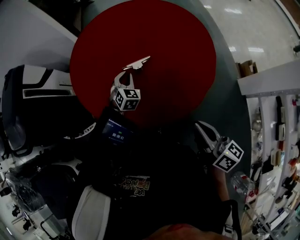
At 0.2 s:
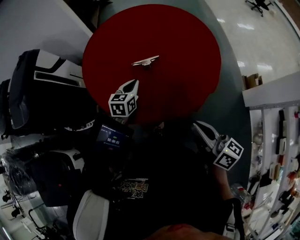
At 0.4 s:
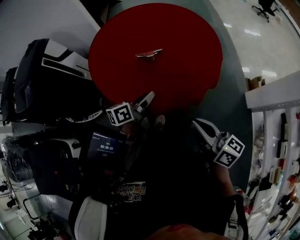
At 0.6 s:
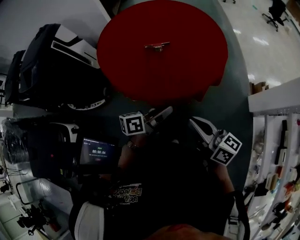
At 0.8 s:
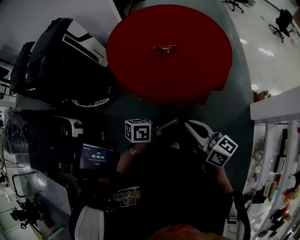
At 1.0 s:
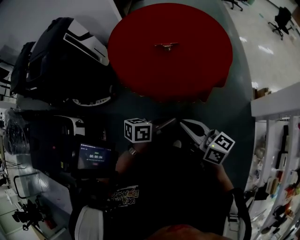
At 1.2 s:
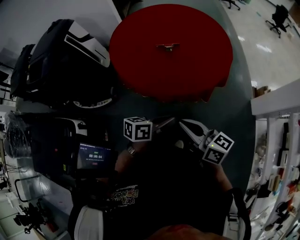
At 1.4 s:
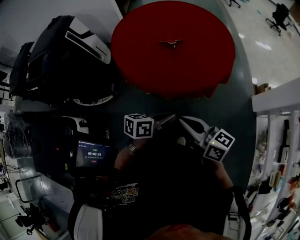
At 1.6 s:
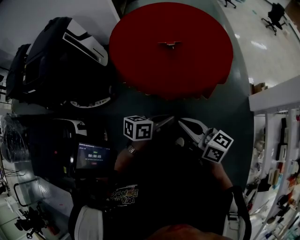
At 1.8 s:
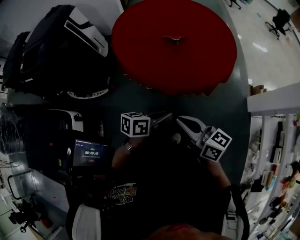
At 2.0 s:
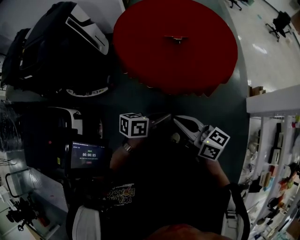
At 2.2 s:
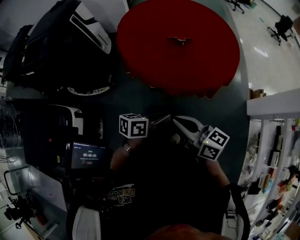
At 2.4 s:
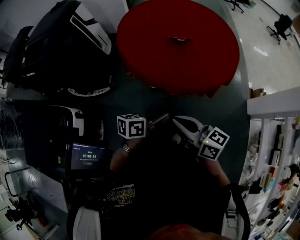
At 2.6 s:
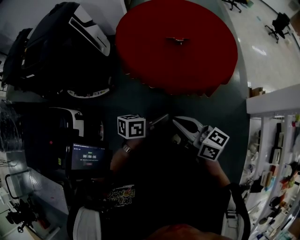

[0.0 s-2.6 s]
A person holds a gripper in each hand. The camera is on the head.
0.0 to 1.2 s: The right gripper heads backward and to the left, covering roughly 25 cm, and changes its angle by some 30 degrees. Meanwhile the left gripper travels backward by about 50 cm, and turns by roughly 80 degrees.
1.2 to 2.6 s: The grippers both shift to the left by about 10 cm.

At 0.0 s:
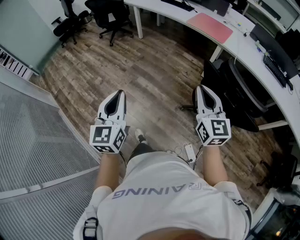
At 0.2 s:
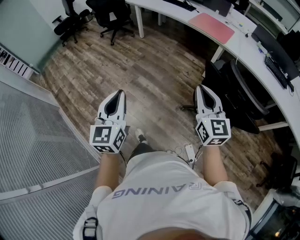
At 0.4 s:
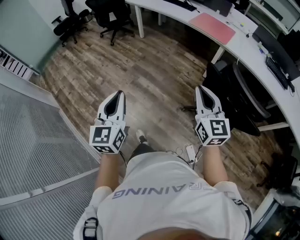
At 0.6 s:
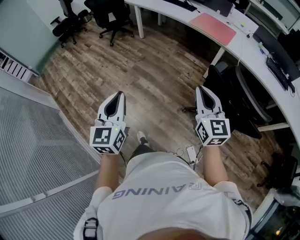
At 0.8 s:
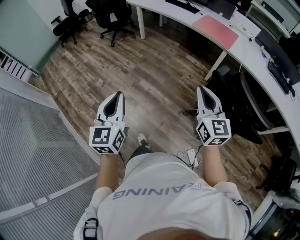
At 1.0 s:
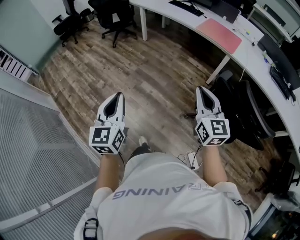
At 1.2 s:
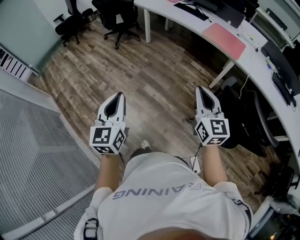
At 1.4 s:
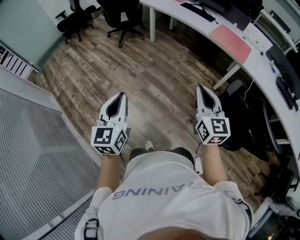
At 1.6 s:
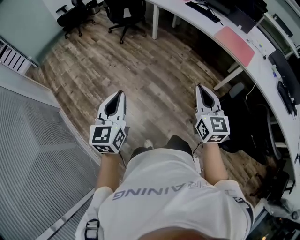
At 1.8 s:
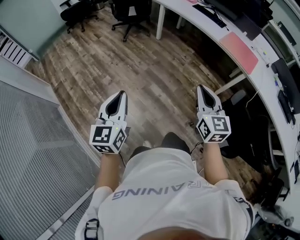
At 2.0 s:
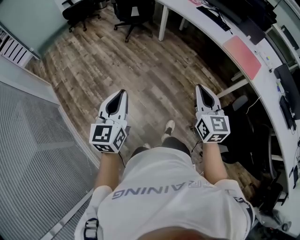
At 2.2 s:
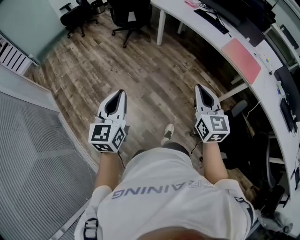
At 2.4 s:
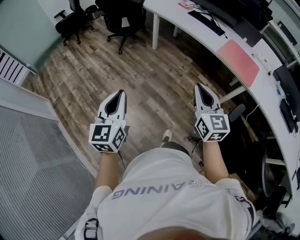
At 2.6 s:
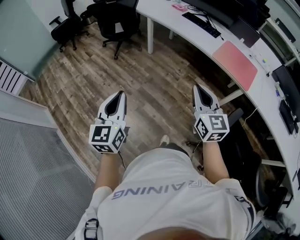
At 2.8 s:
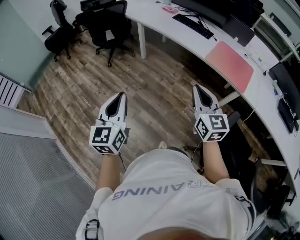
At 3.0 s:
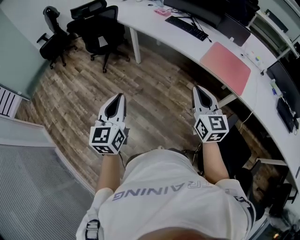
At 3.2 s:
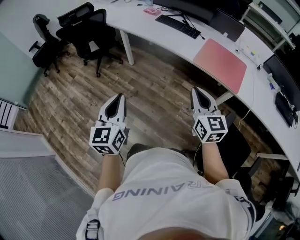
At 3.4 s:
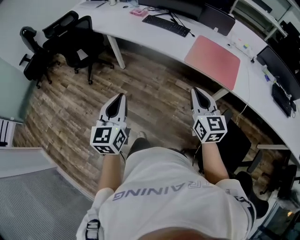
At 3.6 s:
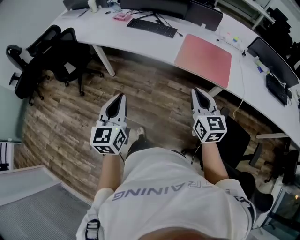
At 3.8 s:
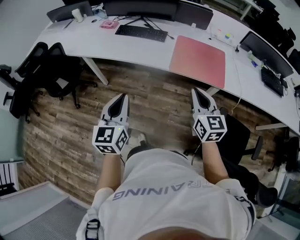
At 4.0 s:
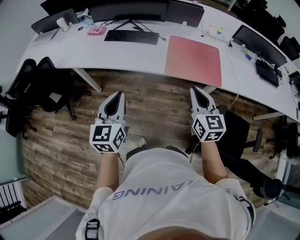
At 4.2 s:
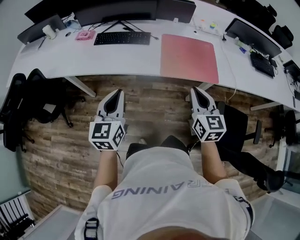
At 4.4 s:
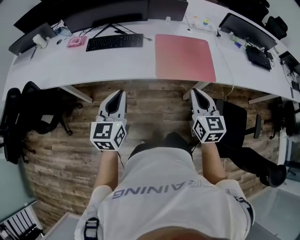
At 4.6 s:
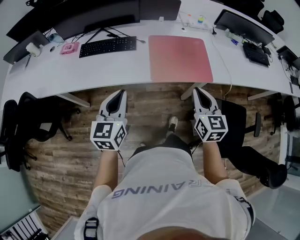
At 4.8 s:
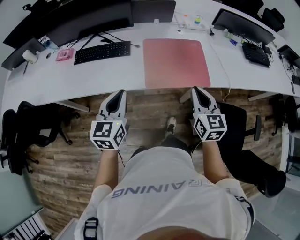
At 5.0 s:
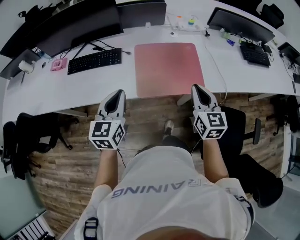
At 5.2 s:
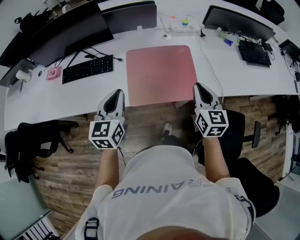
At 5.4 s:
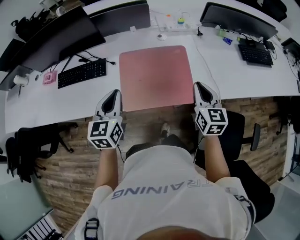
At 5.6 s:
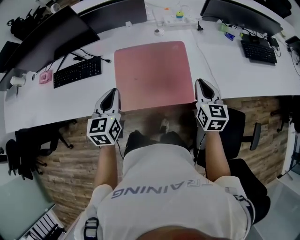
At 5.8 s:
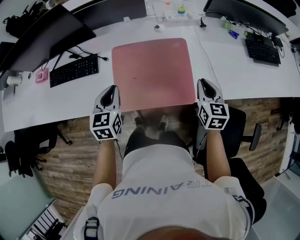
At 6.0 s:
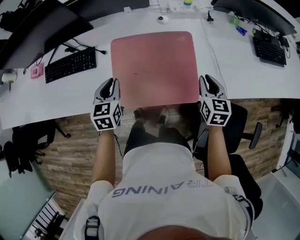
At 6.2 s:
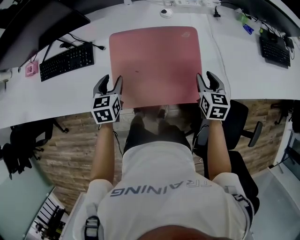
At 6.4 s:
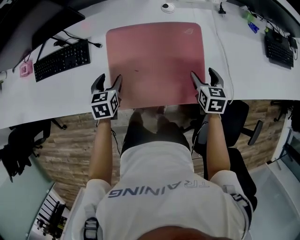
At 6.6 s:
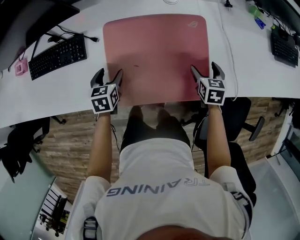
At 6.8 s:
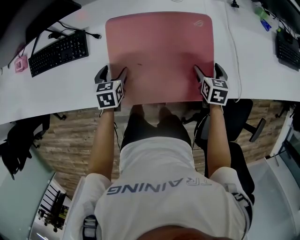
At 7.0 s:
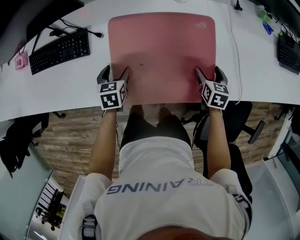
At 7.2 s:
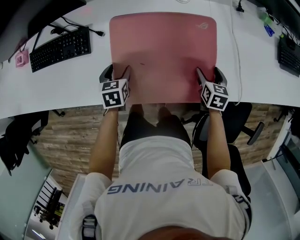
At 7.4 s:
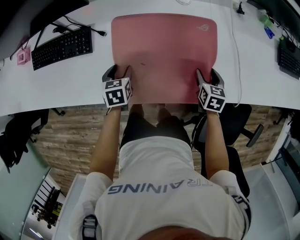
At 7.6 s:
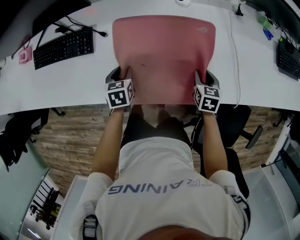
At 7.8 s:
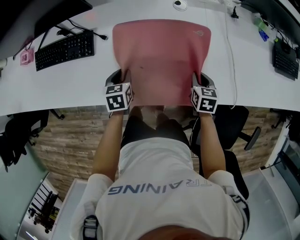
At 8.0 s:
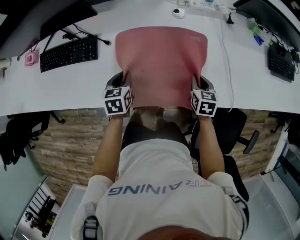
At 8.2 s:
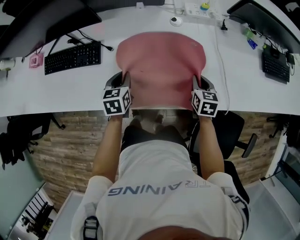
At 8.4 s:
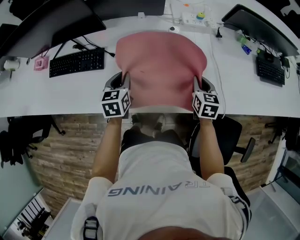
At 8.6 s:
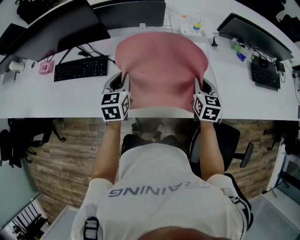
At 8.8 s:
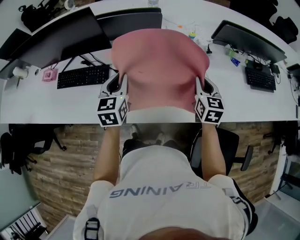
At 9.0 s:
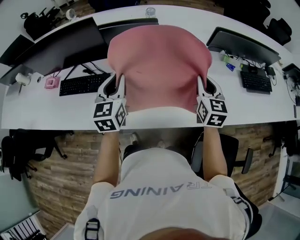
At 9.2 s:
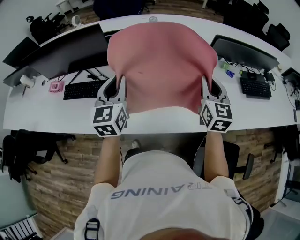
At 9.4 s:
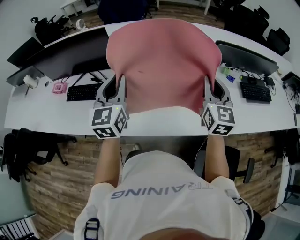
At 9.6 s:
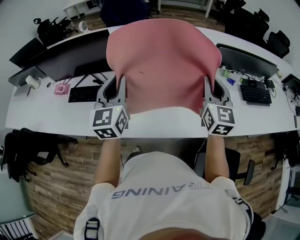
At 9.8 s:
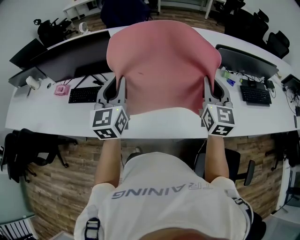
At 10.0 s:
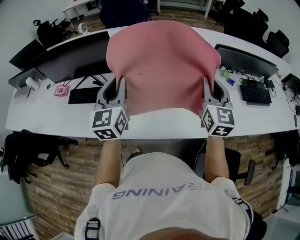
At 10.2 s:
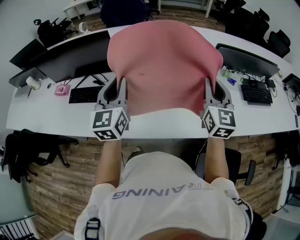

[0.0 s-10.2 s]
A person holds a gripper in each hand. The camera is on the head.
0.0 to 1.4 s: The left gripper is displaced to the left and forward by roughly 25 cm; the right gripper travels forward and to the left by some 25 cm.
1.4 to 3.0 s: The grippers both shift forward by about 40 cm.
3.0 to 4.4 s: The right gripper changes place by approximately 25 cm, and rotates roughly 40 degrees. Meanwhile the left gripper moves about 50 cm, and rotates some 40 degrees.
4.4 to 5.8 s: The right gripper moves forward, to the right and downward, approximately 40 cm; the left gripper heads forward and to the right, covering approximately 40 cm.
5.8 to 7.2 s: Both grippers travel together downward, some 25 cm. The left gripper changes its angle by approximately 30 degrees, and opens. The right gripper turns by approximately 20 degrees, and opens its fingers.
7.2 to 8.8 s: The two grippers go roughly 30 cm upward. The right gripper changes its angle by approximately 30 degrees, and closes up. Meanwhile the left gripper tips its fingers upward by about 40 degrees, and closes up.
8.8 to 10.2 s: Both grippers move upward, approximately 15 cm. The left gripper swivels approximately 20 degrees. Meanwhile the right gripper changes its angle by about 20 degrees.

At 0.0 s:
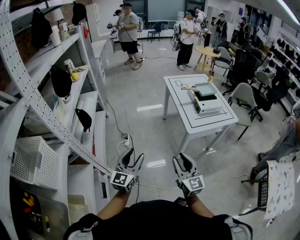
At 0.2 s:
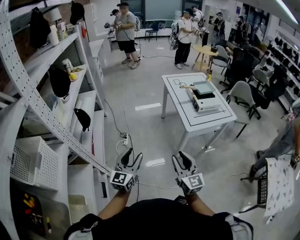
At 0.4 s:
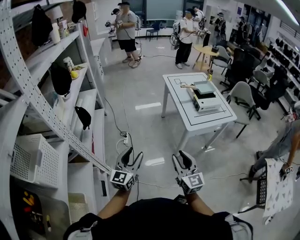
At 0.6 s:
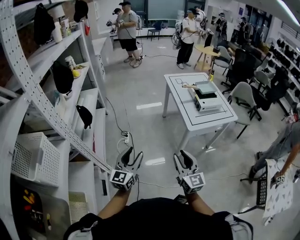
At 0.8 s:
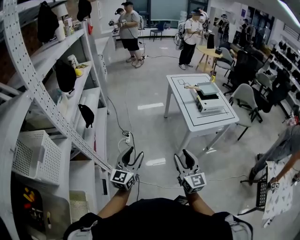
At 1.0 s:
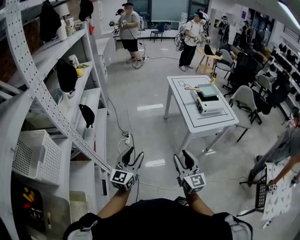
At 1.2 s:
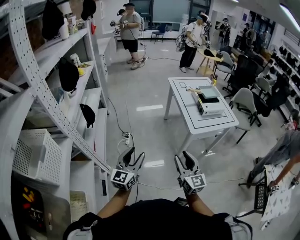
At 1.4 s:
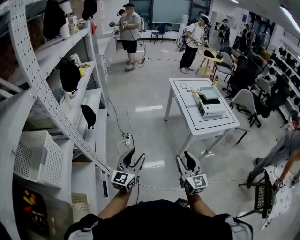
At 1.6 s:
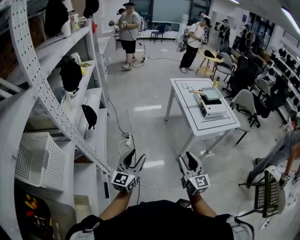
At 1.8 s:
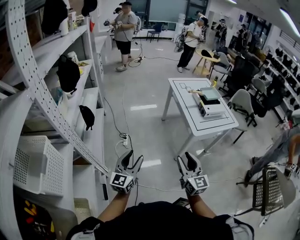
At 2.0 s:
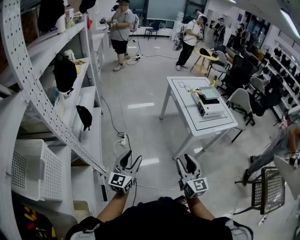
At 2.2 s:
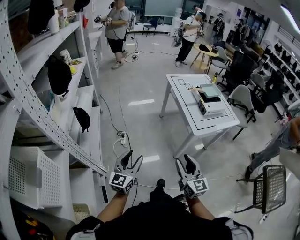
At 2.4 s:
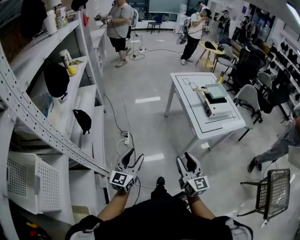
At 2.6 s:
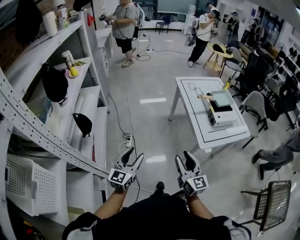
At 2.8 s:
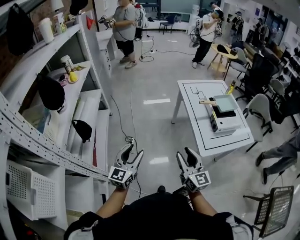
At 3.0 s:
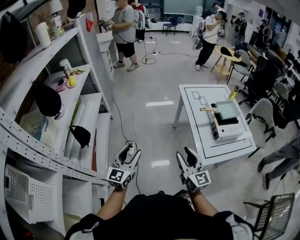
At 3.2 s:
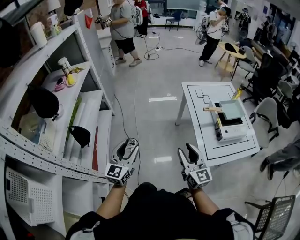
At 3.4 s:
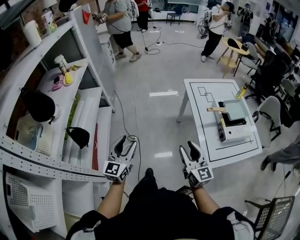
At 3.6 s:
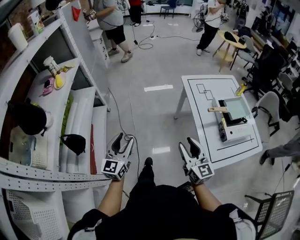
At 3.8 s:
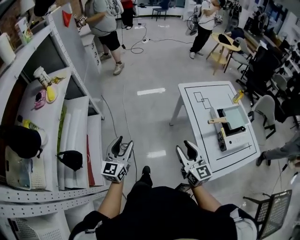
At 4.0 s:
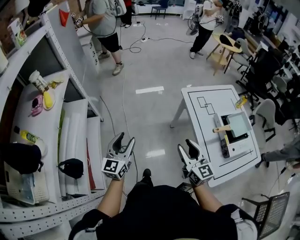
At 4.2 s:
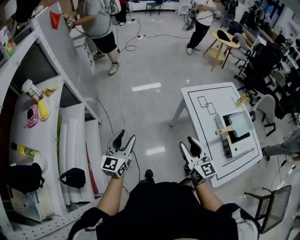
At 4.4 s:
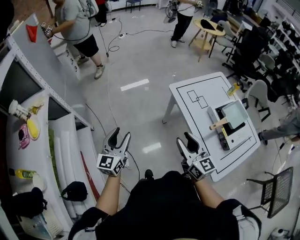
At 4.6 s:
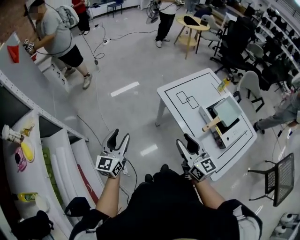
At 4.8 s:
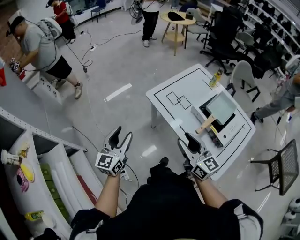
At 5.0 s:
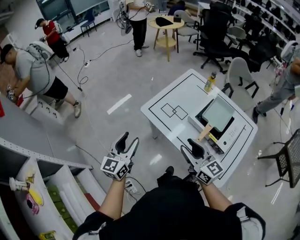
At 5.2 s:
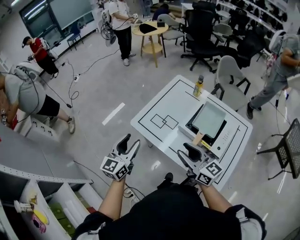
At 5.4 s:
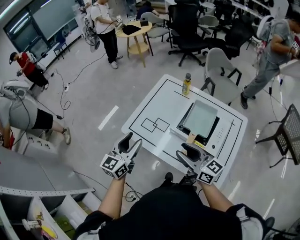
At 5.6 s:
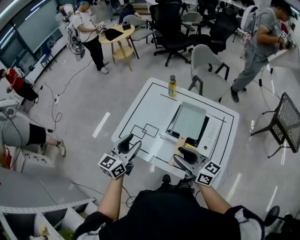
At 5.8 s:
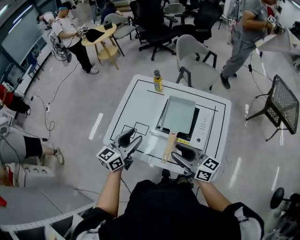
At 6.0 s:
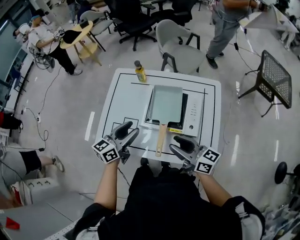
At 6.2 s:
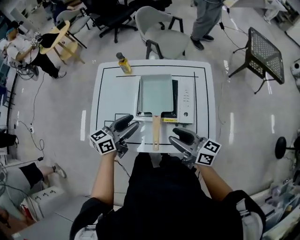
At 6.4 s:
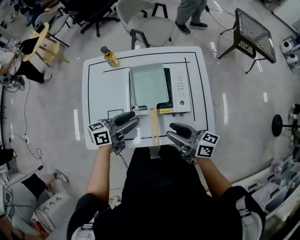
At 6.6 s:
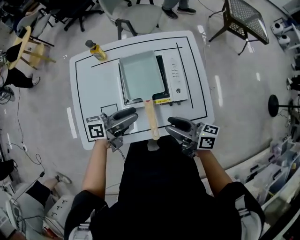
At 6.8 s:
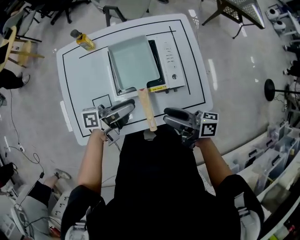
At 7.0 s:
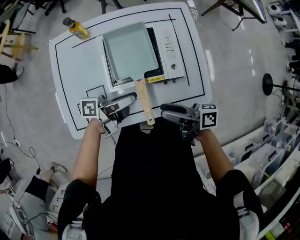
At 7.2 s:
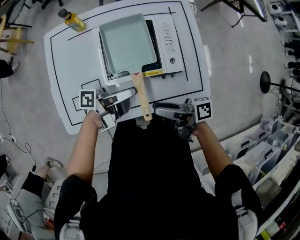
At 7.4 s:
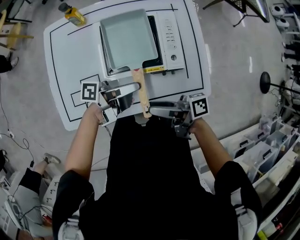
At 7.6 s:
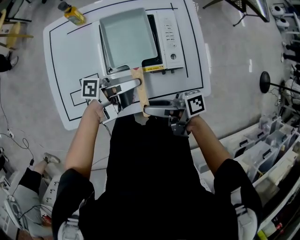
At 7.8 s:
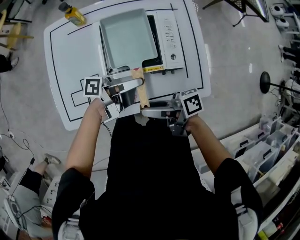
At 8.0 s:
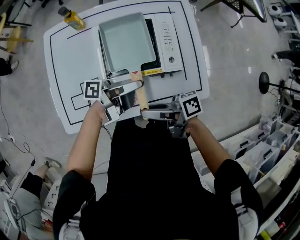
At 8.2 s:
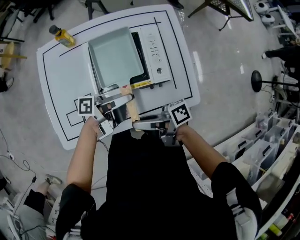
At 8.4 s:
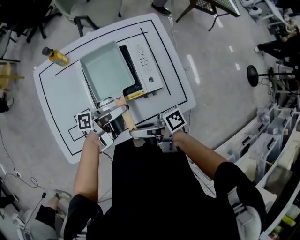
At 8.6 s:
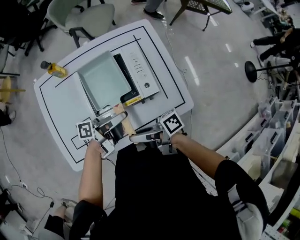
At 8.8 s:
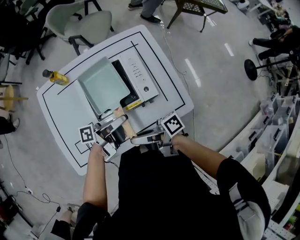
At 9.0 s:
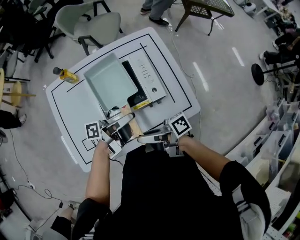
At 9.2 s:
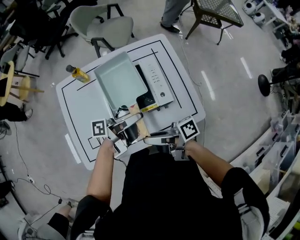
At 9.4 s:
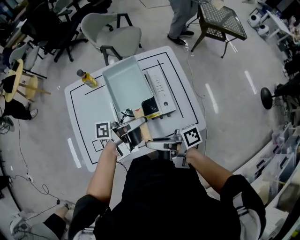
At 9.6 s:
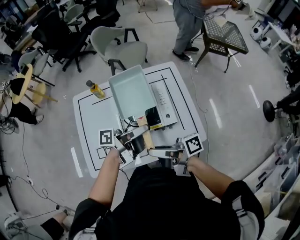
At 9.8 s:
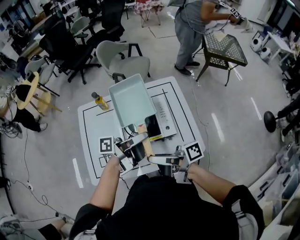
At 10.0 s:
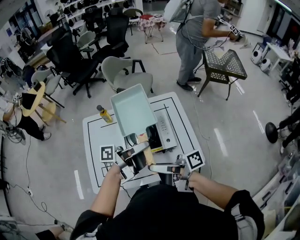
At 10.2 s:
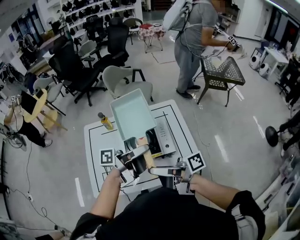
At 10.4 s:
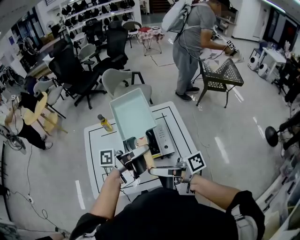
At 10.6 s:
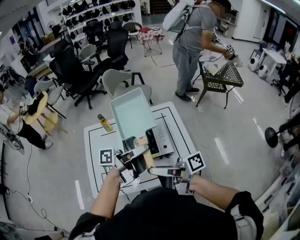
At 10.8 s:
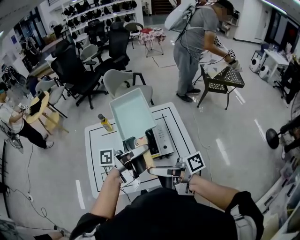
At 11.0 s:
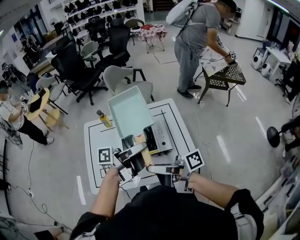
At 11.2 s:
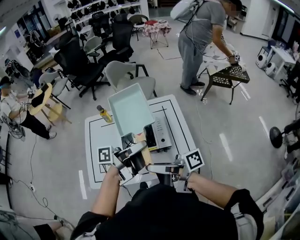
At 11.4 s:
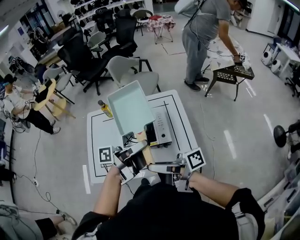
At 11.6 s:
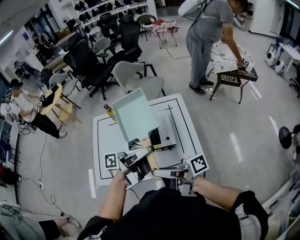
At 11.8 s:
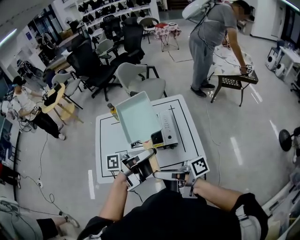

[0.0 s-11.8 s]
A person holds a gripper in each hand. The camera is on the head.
0.0 to 1.4 s: The left gripper heads to the left, covering some 5 cm.
1.4 to 3.0 s: The grippers both shift forward by some 30 cm.
3.0 to 4.4 s: Both grippers travel together forward, some 40 cm.
4.4 to 6.0 s: The right gripper ends up roughly 35 cm from where it was, and turns by about 40 degrees; the left gripper shifts by some 60 cm, and turns by approximately 80 degrees.
6.0 to 7.4 s: The two grippers go approximately 15 cm downward. The left gripper turns by approximately 80 degrees. Meanwhile the right gripper rolls clockwise, seen from behind, by some 50 degrees.
7.4 to 8.8 s: The left gripper closes up, while the right gripper closes.
8.8 to 10.4 s: Both grippers travel together upward, about 25 cm.
10.4 to 11.8 s: The right gripper changes place by approximately 10 cm; the left gripper changes place by roughly 10 cm.
